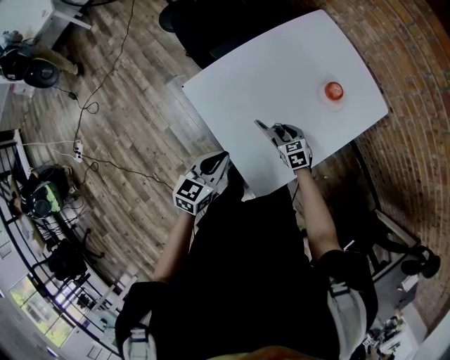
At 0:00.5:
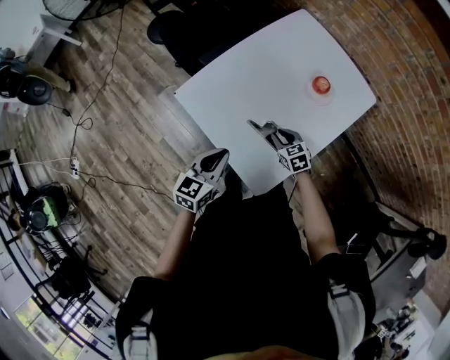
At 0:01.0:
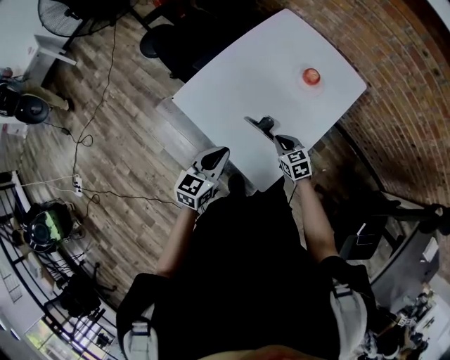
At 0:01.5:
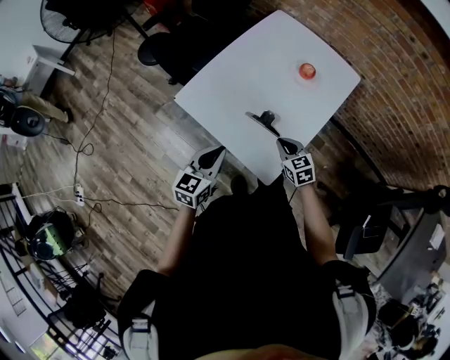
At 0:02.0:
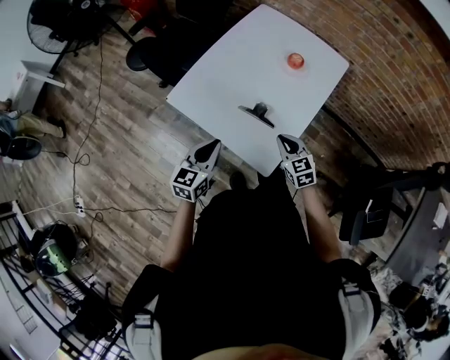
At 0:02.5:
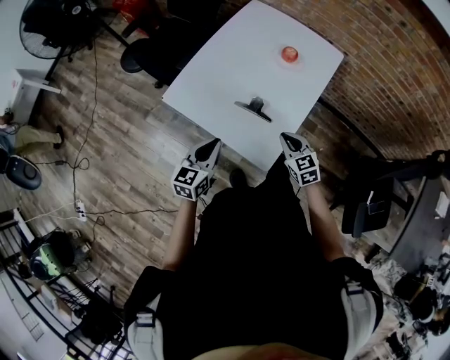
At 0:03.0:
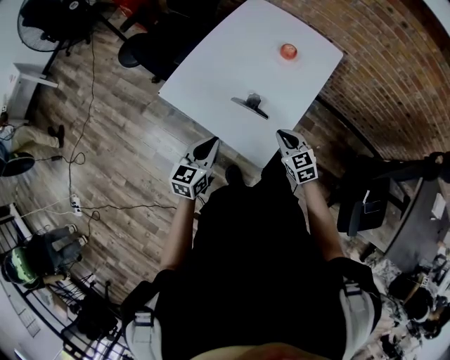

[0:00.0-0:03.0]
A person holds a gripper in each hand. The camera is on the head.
0:00.0 to 0:01.5: The right gripper travels backward and upward by roughly 15 cm, and closes, while the left gripper travels backward by about 5 cm.
0:01.5 to 0:03.0: The right gripper shifts by roughly 5 cm.

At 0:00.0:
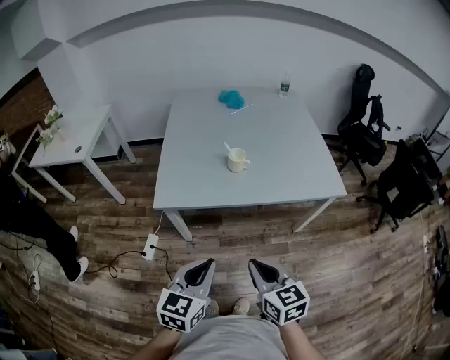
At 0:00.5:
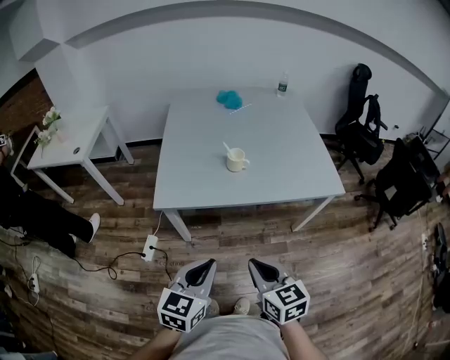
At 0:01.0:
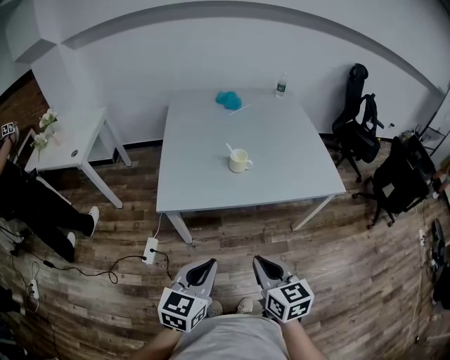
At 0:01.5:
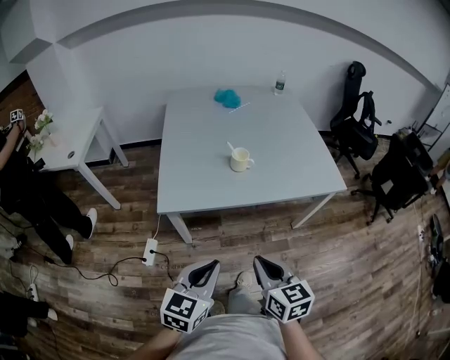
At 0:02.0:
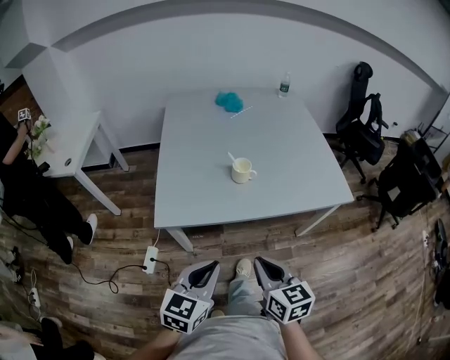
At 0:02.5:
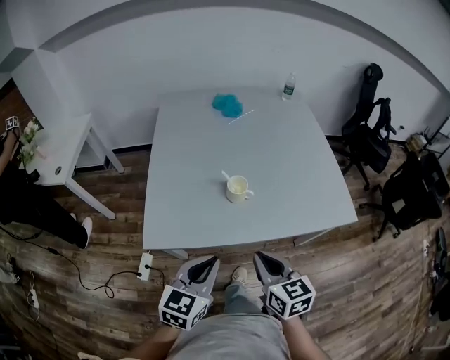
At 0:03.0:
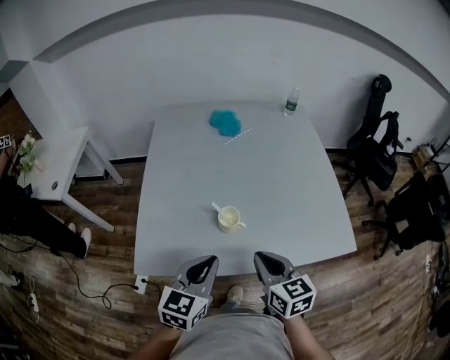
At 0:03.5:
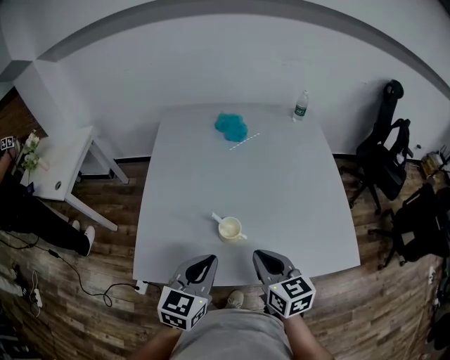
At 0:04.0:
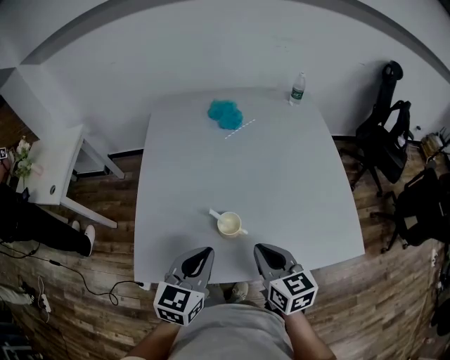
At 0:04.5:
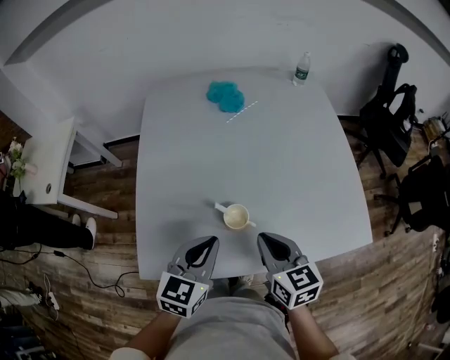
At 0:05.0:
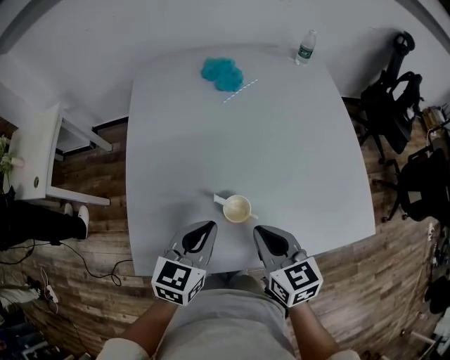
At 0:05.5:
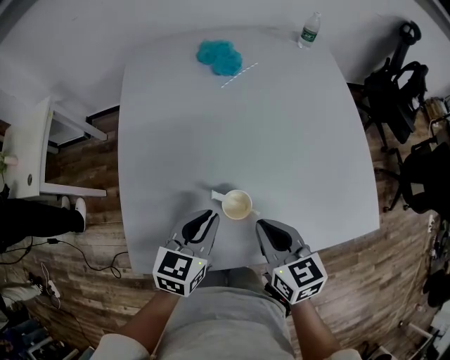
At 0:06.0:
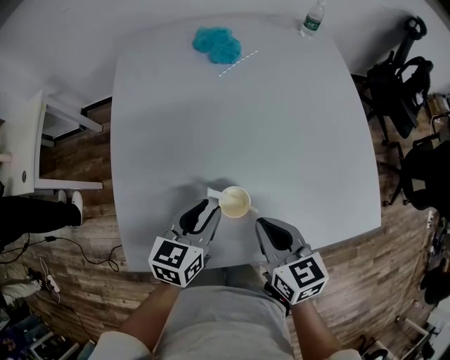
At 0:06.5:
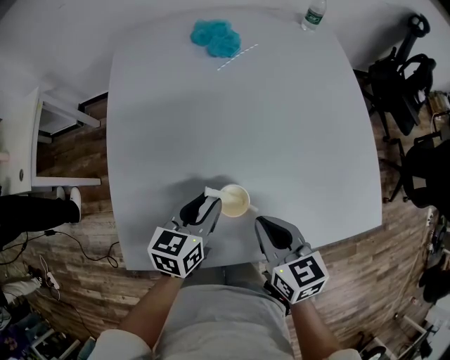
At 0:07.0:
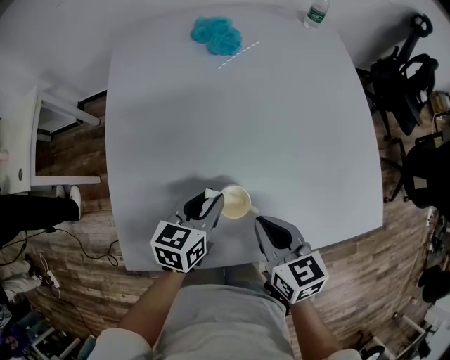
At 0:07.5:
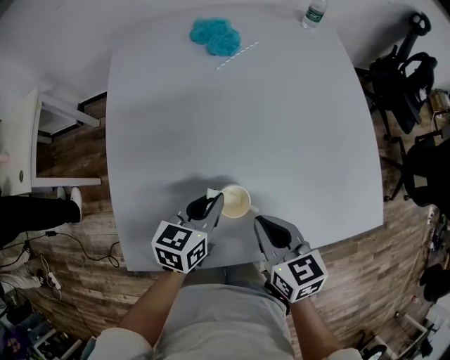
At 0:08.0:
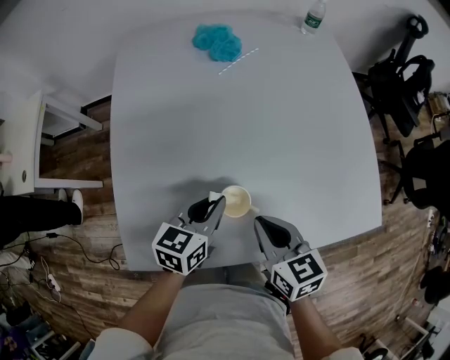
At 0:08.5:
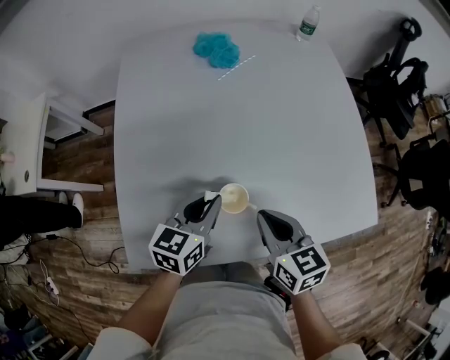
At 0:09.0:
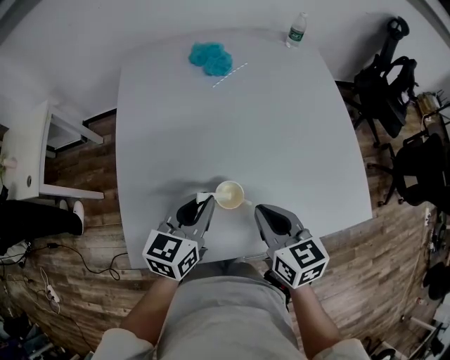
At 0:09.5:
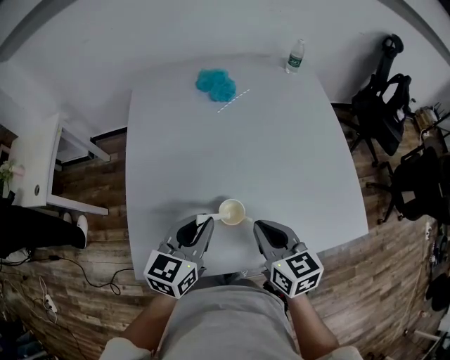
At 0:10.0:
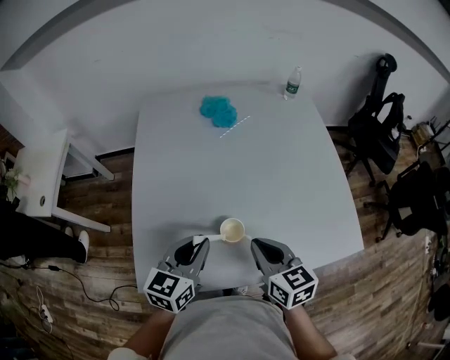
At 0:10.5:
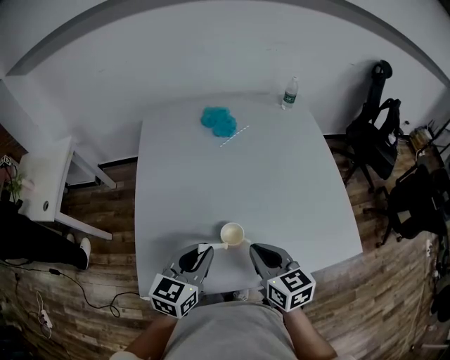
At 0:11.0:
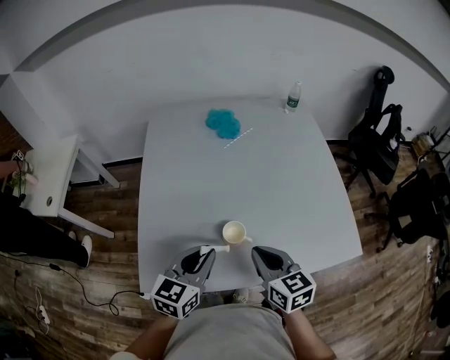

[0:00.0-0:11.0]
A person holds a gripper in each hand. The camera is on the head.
0:00.0 to 0:02.0: Both grippers travel together forward, approximately 10 cm.
0:02.0 to 0:03.5: The grippers both shift forward by about 30 cm.
0:03.5 to 0:05.5: The left gripper moves forward and downward, some 15 cm; the right gripper is displaced forward and downward by about 10 cm.
0:05.5 to 0:07.5: The left gripper is displaced downward by roughly 5 cm, and opens, then closes once more.
0:07.5 to 0:09.0: The left gripper shifts about 10 cm upward. Meanwhile the right gripper shifts some 5 cm upward.
0:09.0 to 0:11.0: The left gripper shifts roughly 10 cm backward and upward. The right gripper ends up some 5 cm from where it was.

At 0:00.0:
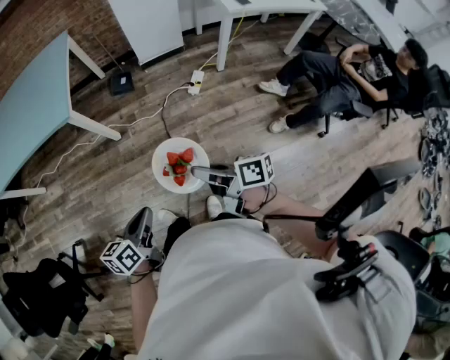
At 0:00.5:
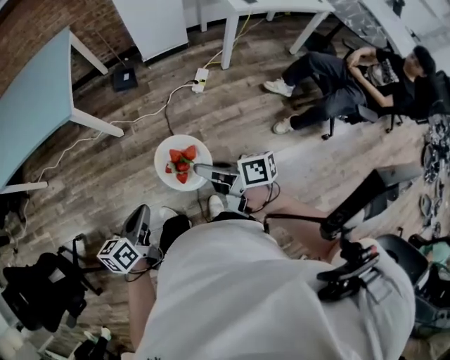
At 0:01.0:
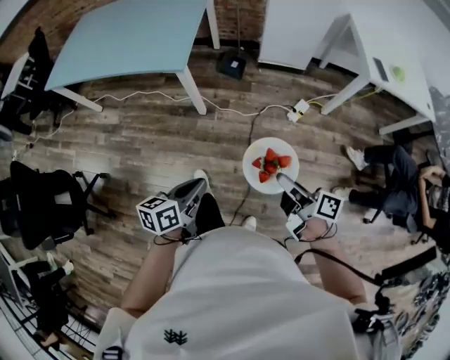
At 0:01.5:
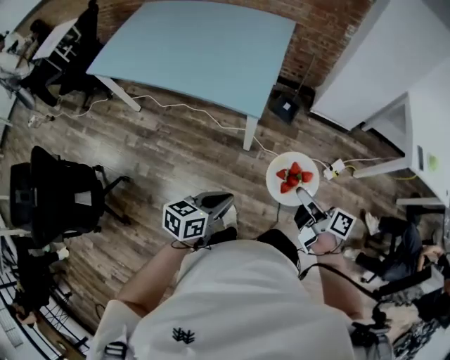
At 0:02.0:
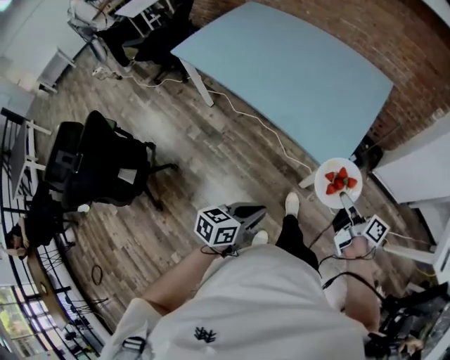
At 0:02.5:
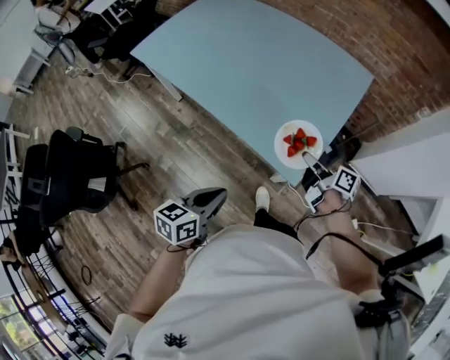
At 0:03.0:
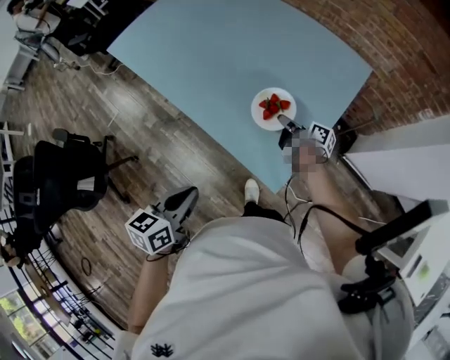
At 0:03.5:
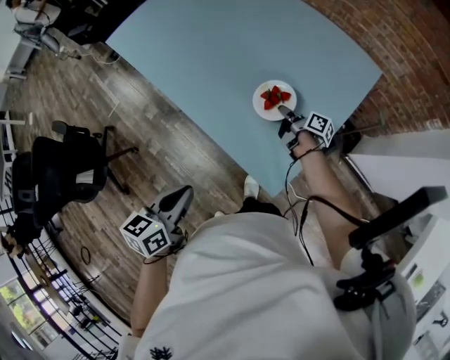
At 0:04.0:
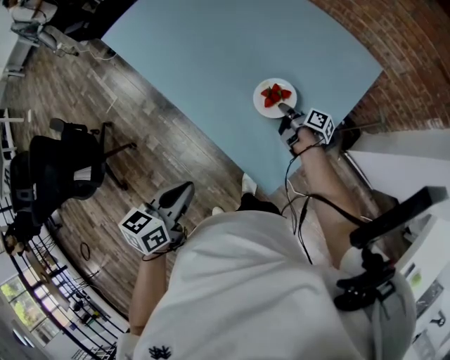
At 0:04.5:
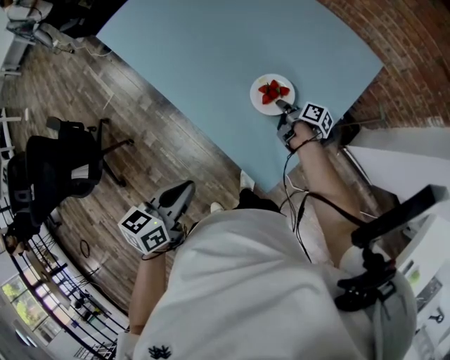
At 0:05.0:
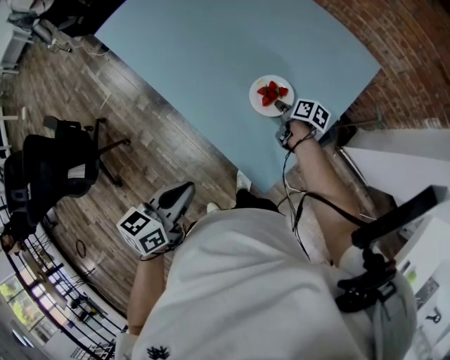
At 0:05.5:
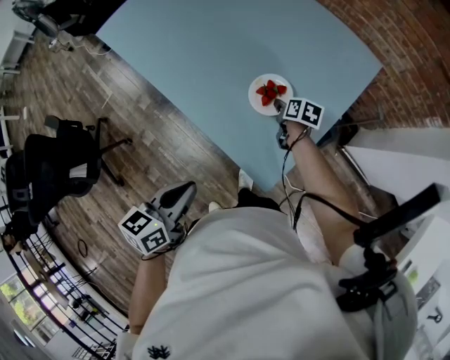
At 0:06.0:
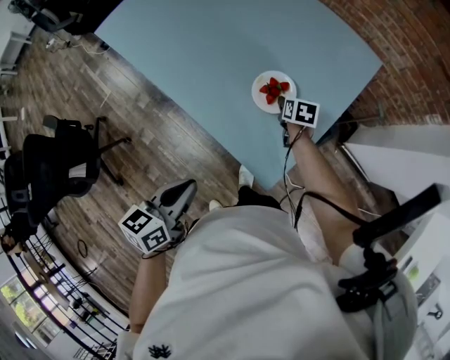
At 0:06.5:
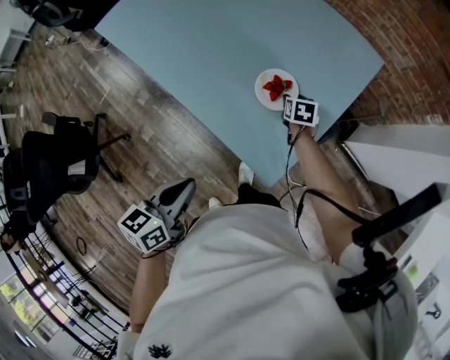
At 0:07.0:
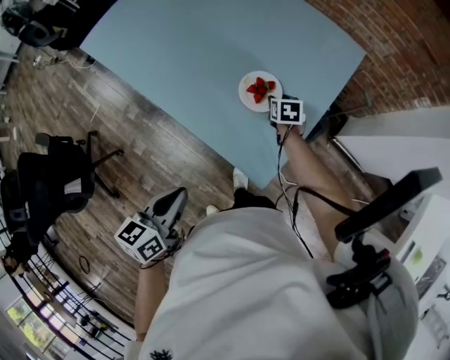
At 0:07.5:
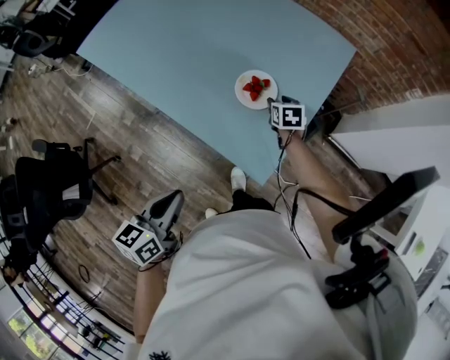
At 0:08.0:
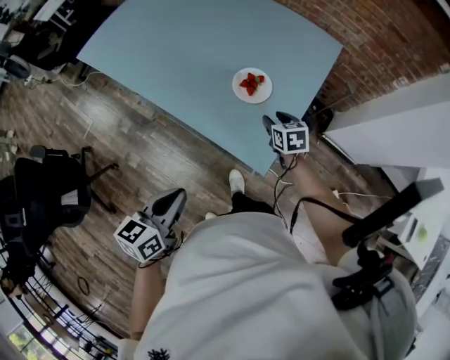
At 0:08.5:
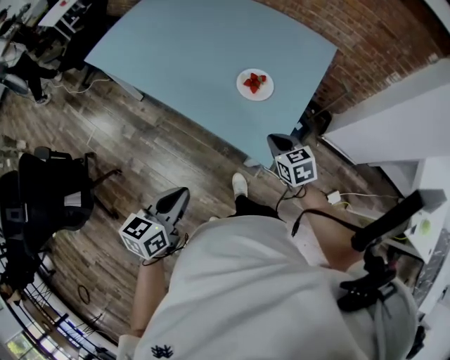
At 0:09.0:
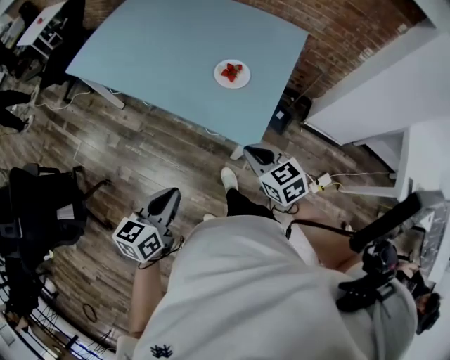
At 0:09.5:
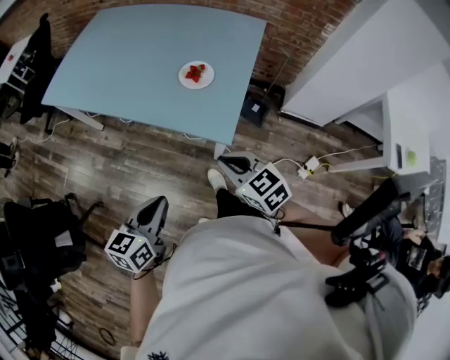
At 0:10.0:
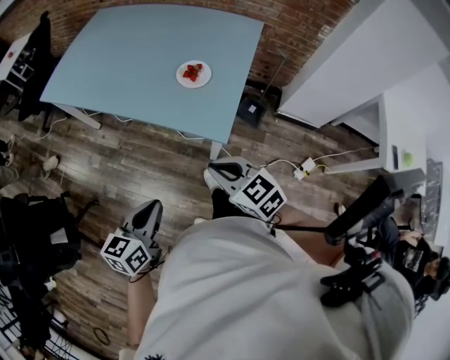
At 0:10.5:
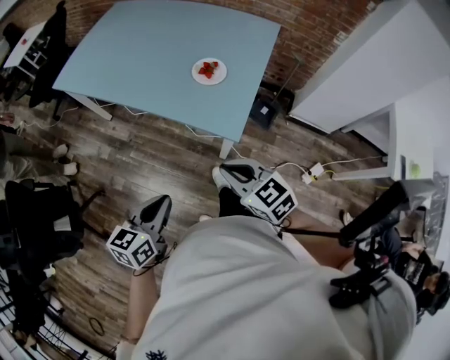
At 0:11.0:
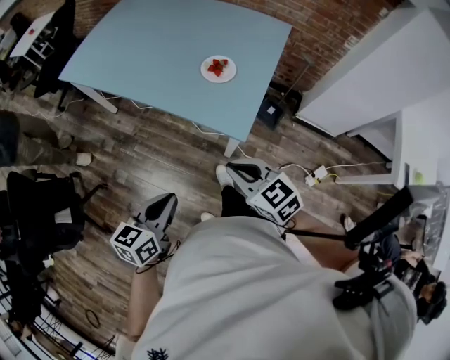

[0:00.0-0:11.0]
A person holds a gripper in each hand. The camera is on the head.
0:00.0 to 0:02.0: The two grippers travel together, forward and to the left, approximately 60 cm. The left gripper swivels approximately 20 degrees.
0:02.0 to 0:03.5: The right gripper shifts approximately 40 cm forward, and swivels some 20 degrees. Meanwhile the left gripper is displaced forward by about 20 cm, and turns by roughly 20 degrees.
0:03.5 to 0:05.5: The right gripper changes its angle by about 40 degrees, and opens up.
0:05.5 to 0:07.5: The right gripper turns by some 30 degrees.
0:07.5 to 0:09.0: The left gripper goes about 10 cm backward. The right gripper is displaced backward and upward by about 35 cm, rotates about 30 degrees, and closes its fingers.
0:09.0 to 0:11.0: The right gripper heads backward, covering about 10 cm.

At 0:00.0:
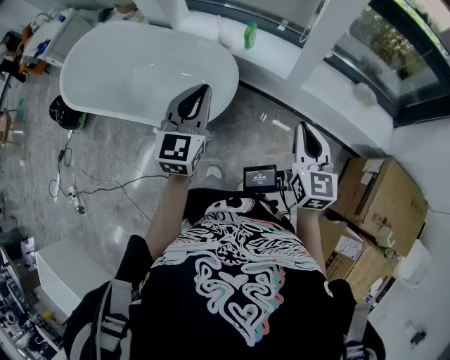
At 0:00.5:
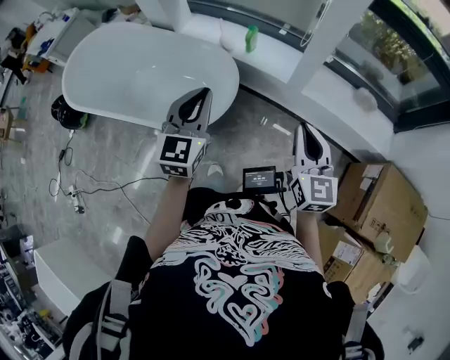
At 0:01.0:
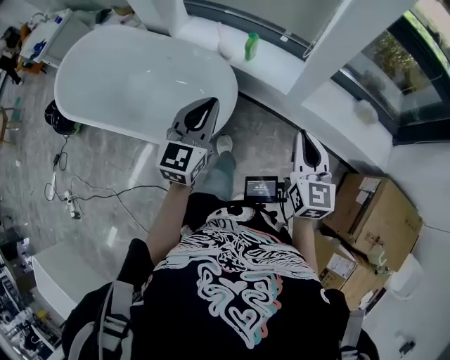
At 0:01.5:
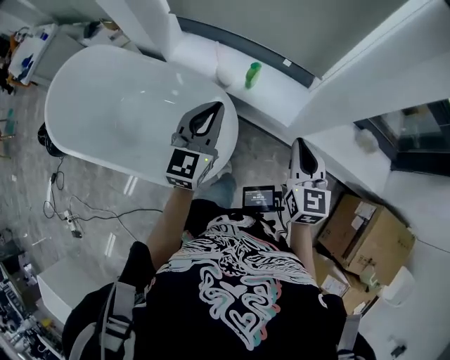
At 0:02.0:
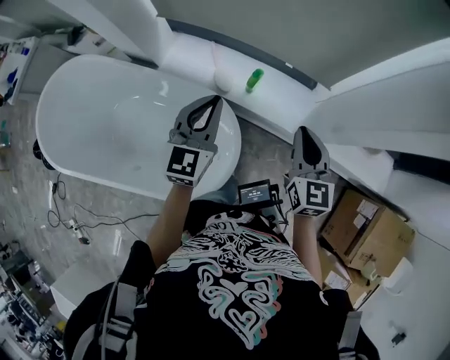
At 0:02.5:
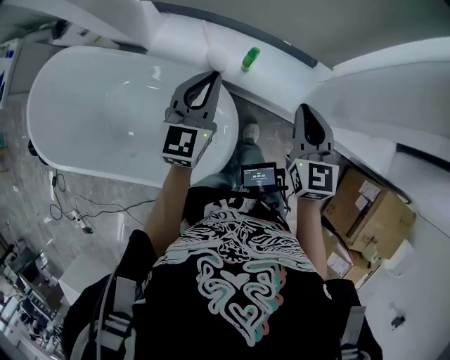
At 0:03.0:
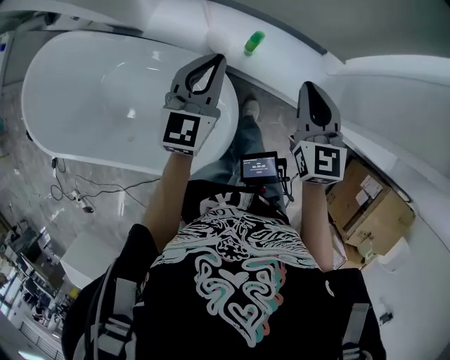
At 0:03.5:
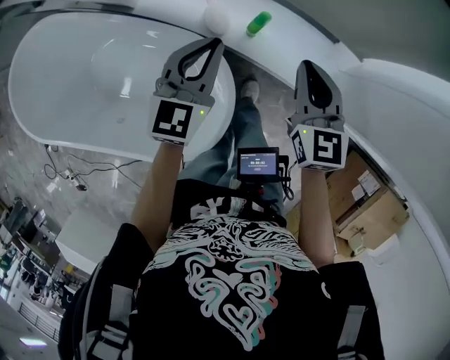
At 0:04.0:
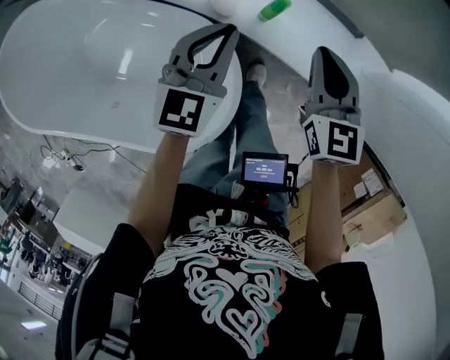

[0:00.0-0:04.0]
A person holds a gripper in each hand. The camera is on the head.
0:00.0 to 0:02.0: The pair of grippers is taken forward, approximately 40 cm.
0:02.0 to 0:04.0: The grippers both shift downward and forward by about 25 cm.
